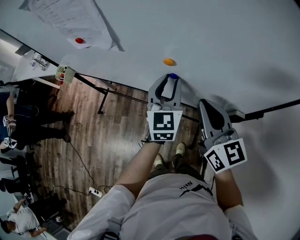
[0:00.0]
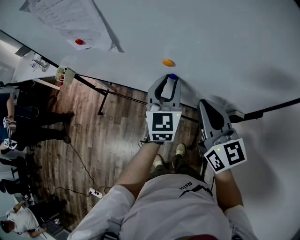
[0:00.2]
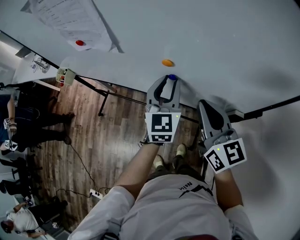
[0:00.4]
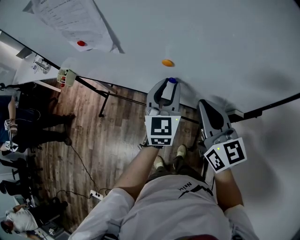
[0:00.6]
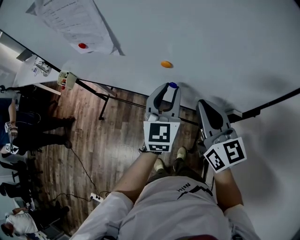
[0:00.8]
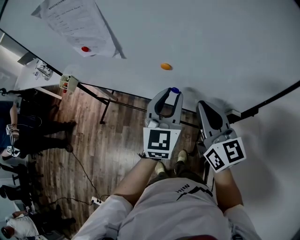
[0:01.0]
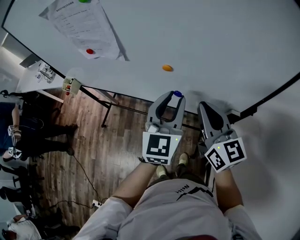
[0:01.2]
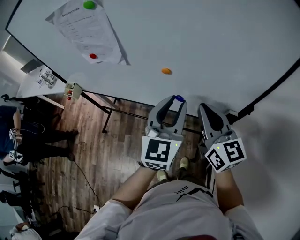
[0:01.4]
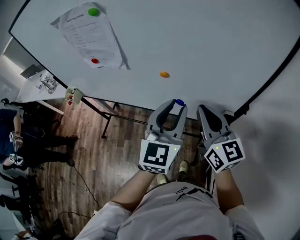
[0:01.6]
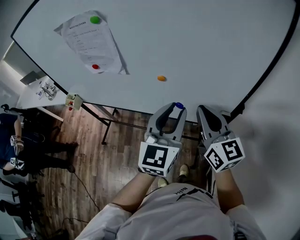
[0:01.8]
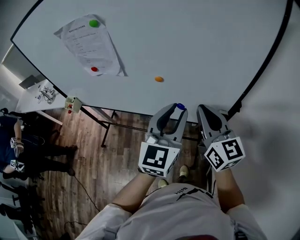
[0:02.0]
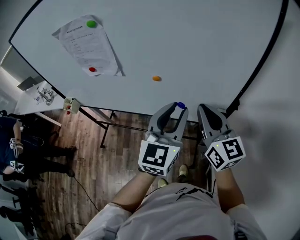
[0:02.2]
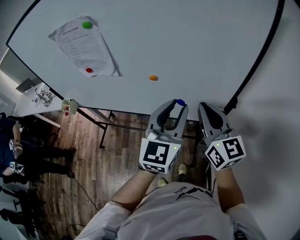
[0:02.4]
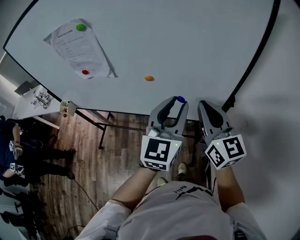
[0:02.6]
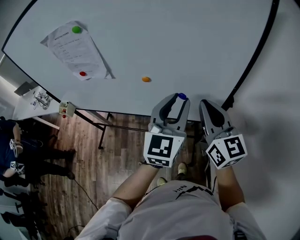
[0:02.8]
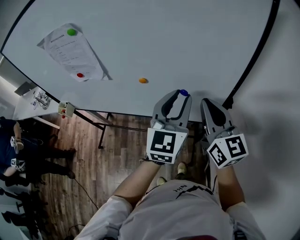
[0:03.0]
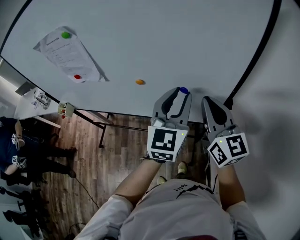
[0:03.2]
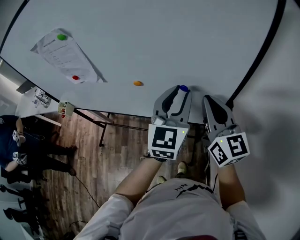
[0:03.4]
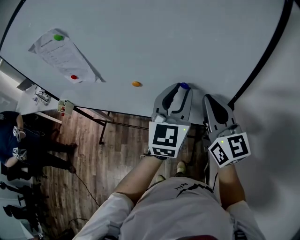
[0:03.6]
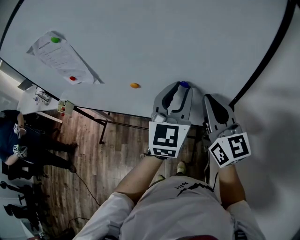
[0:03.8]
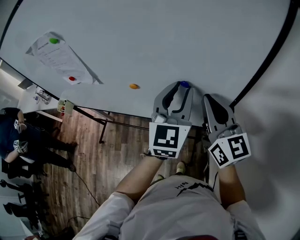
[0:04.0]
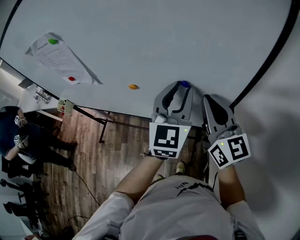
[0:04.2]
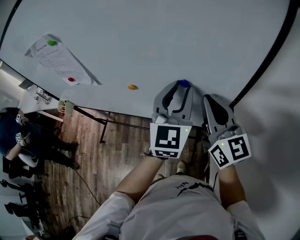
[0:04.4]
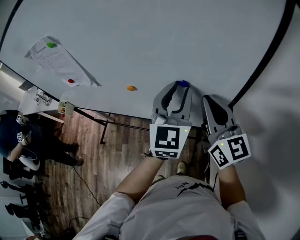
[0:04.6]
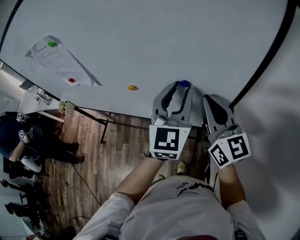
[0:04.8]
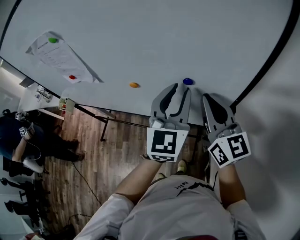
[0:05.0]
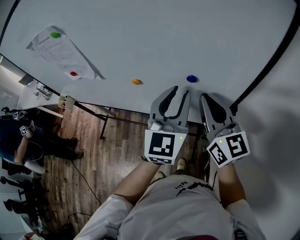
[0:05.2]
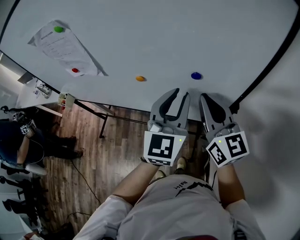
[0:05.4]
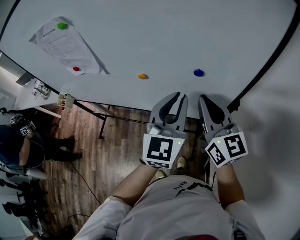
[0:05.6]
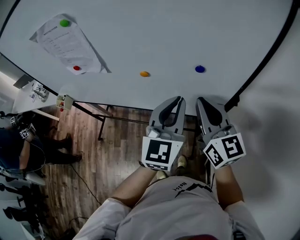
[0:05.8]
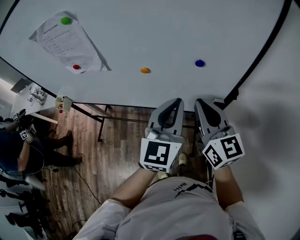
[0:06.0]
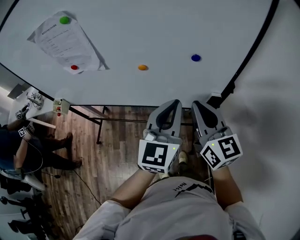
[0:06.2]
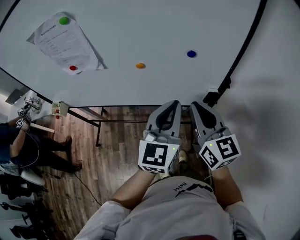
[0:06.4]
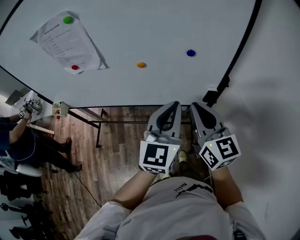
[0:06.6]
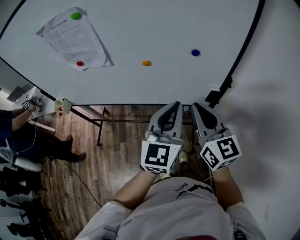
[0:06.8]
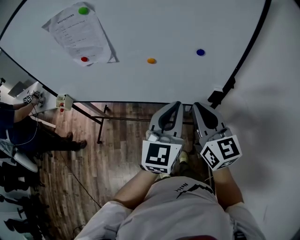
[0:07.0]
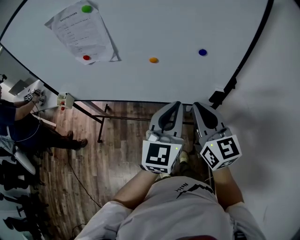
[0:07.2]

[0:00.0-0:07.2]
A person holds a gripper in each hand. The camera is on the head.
0:00.0 to 0:01.4: The right gripper shifts by about 5 cm. The left gripper moves backward and upward, approximately 15 cm.
0:01.4 to 0:02.8: The right gripper heads to the right and upward, covering roughly 10 cm, while the left gripper goes approximately 10 cm to the right.
0:02.8 to 0:04.4: Both grippers travel together forward and to the right, about 10 cm.
0:04.4 to 0:05.8: The left gripper goes about 10 cm backward and to the left, and closes its fingers; the right gripper heads to the left, covering approximately 5 cm.
0:05.8 to 0:07.2: The grippers both shift backward by roughly 10 cm.

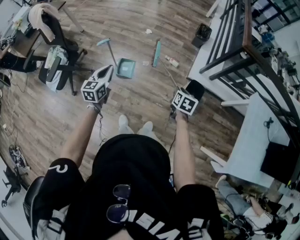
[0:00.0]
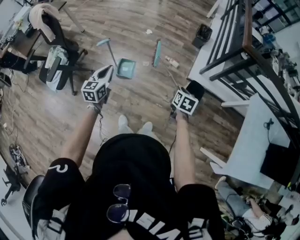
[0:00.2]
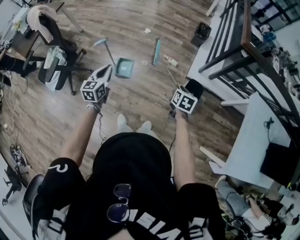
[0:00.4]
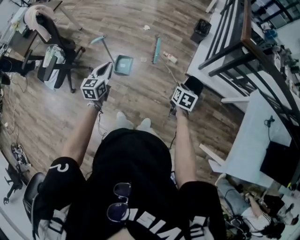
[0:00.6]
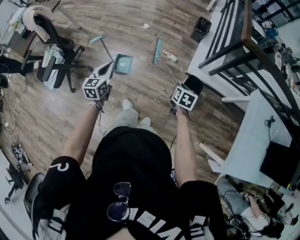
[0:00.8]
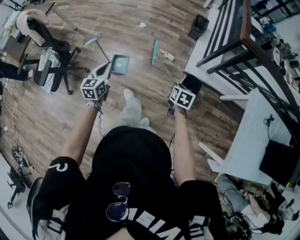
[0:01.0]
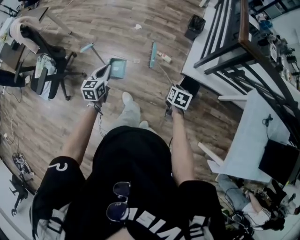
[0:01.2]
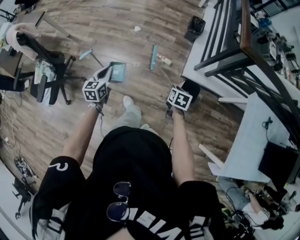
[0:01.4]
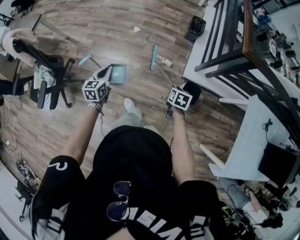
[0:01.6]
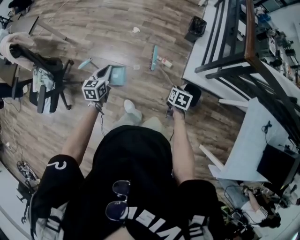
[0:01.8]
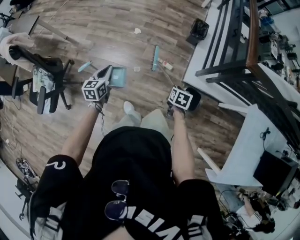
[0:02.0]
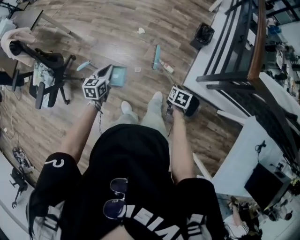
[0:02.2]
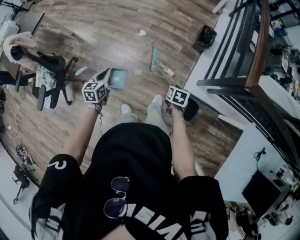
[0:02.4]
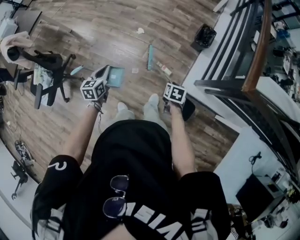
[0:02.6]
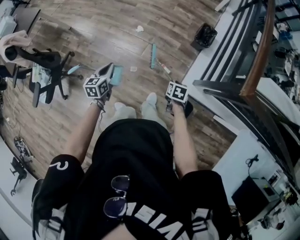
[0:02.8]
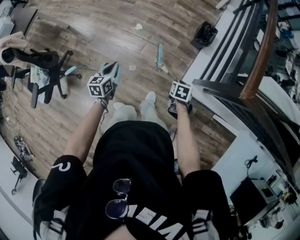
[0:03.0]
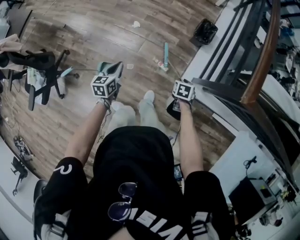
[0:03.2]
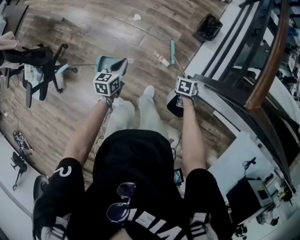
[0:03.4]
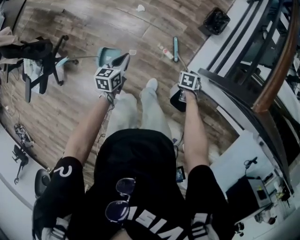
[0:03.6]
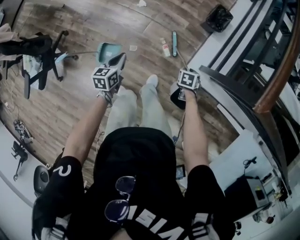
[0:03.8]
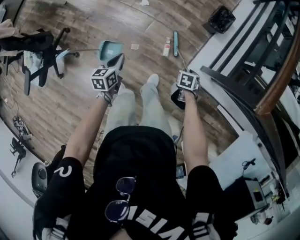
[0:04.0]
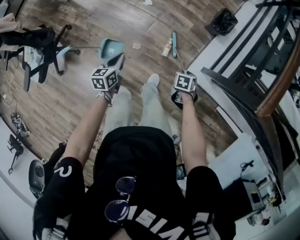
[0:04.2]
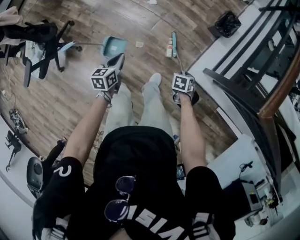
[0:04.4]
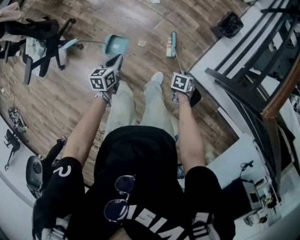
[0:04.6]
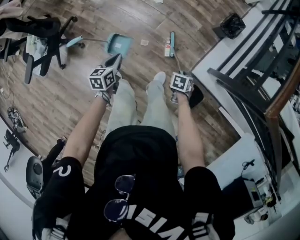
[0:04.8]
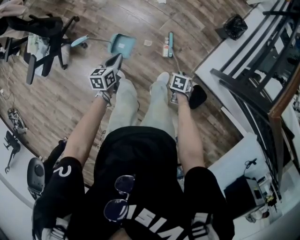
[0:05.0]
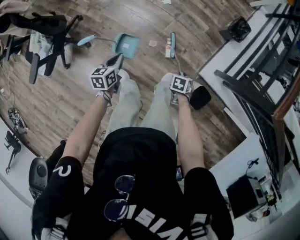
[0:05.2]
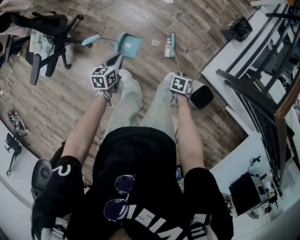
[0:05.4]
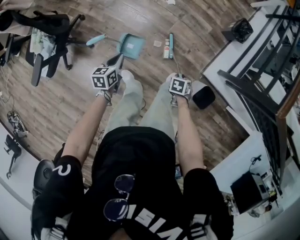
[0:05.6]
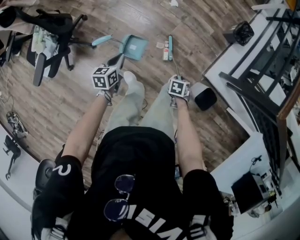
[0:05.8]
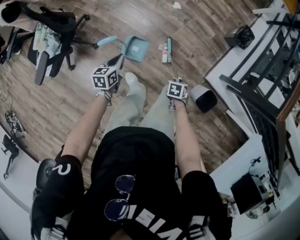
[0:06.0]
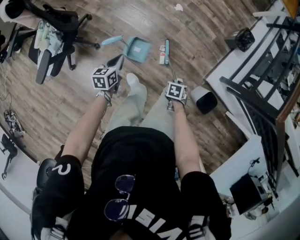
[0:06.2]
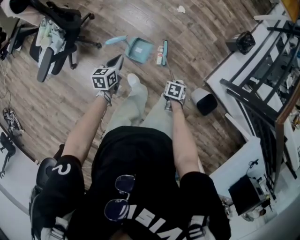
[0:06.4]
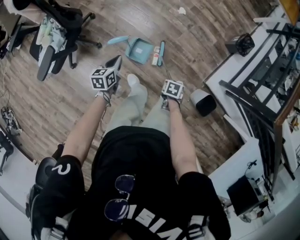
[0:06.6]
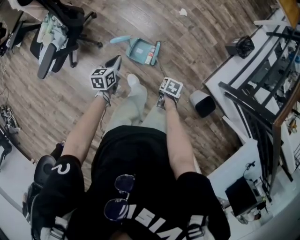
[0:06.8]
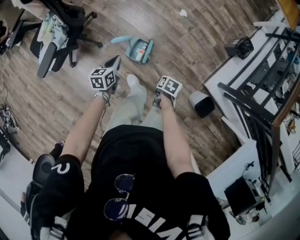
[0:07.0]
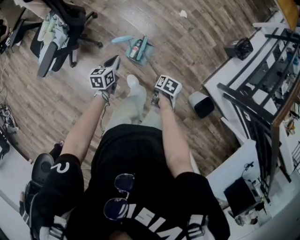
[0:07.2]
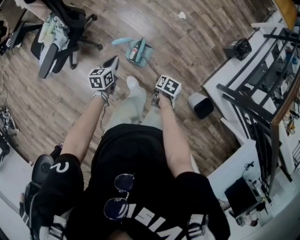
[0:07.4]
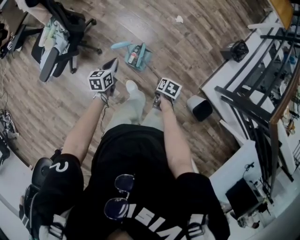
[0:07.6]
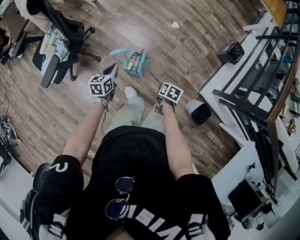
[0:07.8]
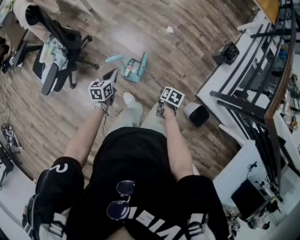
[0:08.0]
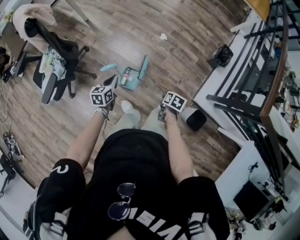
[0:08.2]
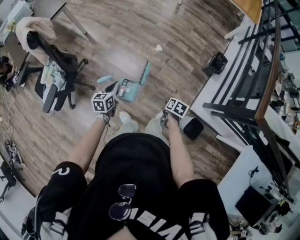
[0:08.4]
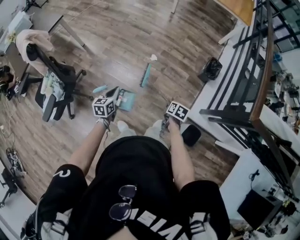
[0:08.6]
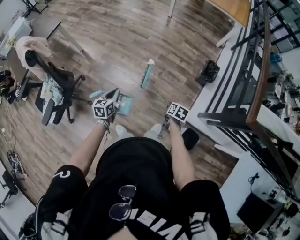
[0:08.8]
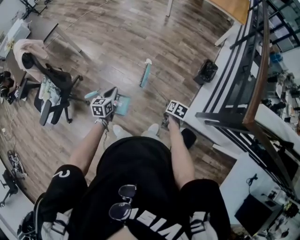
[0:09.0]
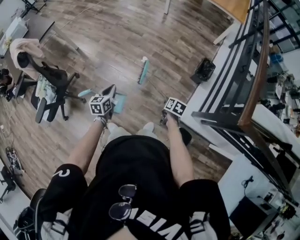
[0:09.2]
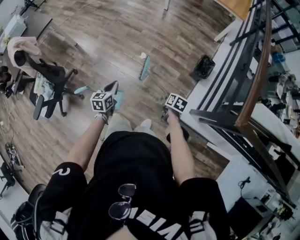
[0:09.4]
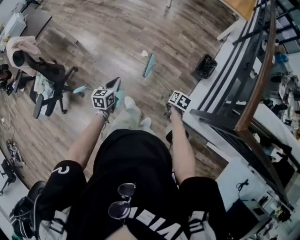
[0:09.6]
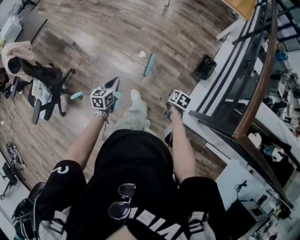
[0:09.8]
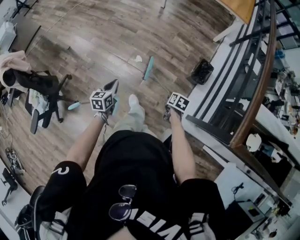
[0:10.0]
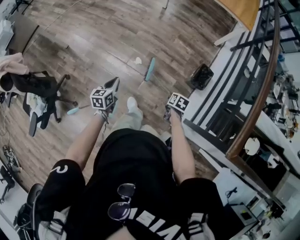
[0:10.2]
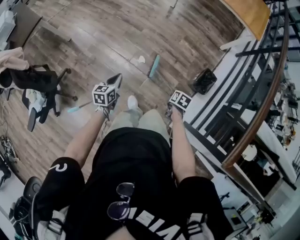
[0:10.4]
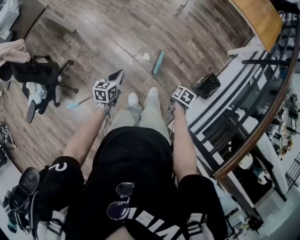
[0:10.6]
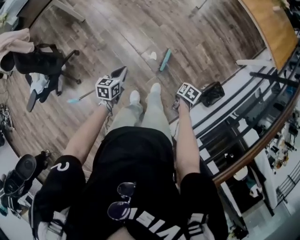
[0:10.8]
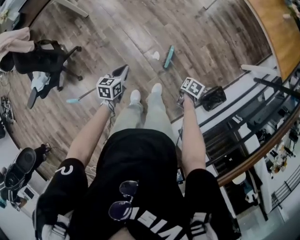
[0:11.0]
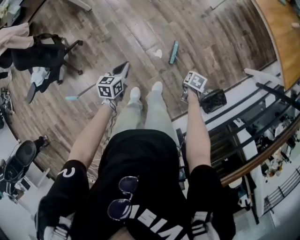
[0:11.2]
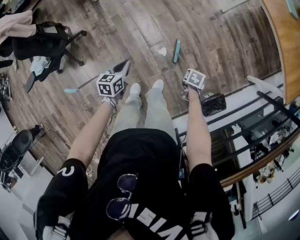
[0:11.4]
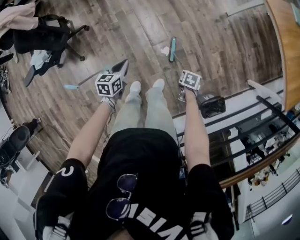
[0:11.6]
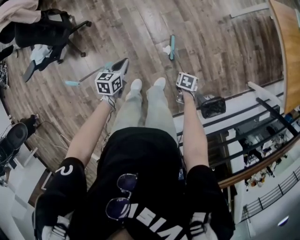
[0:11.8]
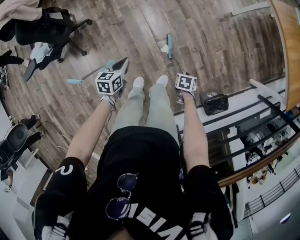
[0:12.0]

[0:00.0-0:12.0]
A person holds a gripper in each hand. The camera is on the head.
0:00.0 to 0:01.6: The two grippers go some 20 cm forward.
0:01.6 to 0:03.0: The left gripper moves forward and to the right, about 25 cm, while the right gripper moves forward, some 25 cm.
0:03.0 to 0:04.4: Both grippers move downward, about 10 cm. The right gripper rotates approximately 20 degrees.
0:04.4 to 0:06.0: The right gripper moves approximately 30 cm; the left gripper moves about 30 cm.
0:06.0 to 0:07.6: The right gripper ends up approximately 15 cm from where it was, and swivels approximately 30 degrees. The left gripper ends up roughly 10 cm from where it was.
0:07.6 to 0:09.0: Both grippers travel together to the right, upward and forward, approximately 35 cm.
0:09.0 to 0:10.4: Both grippers travel together forward, some 30 cm.
0:10.4 to 0:12.0: The left gripper changes place by roughly 15 cm, and changes its angle by some 30 degrees, while the right gripper changes place by approximately 30 cm, and rotates around the line of its fingers by roughly 50 degrees, counterclockwise from behind.

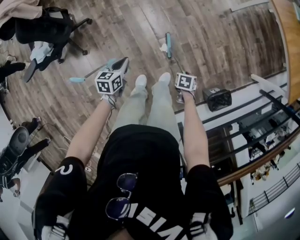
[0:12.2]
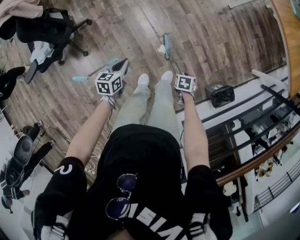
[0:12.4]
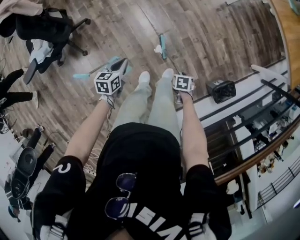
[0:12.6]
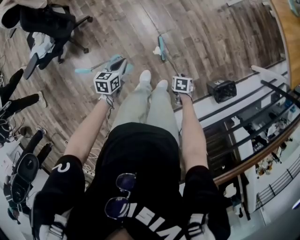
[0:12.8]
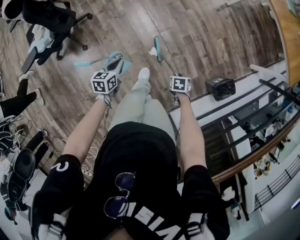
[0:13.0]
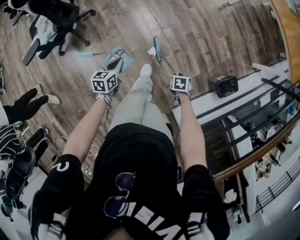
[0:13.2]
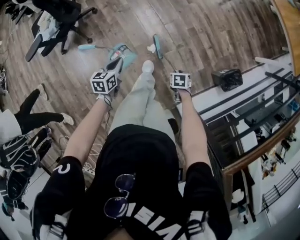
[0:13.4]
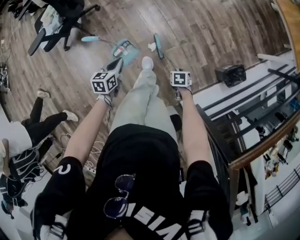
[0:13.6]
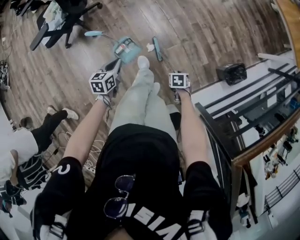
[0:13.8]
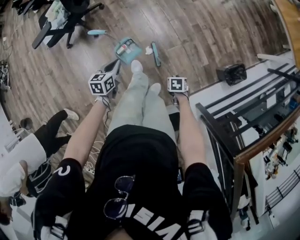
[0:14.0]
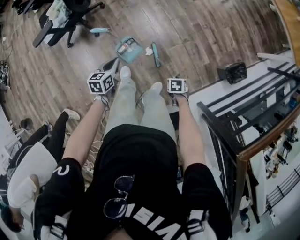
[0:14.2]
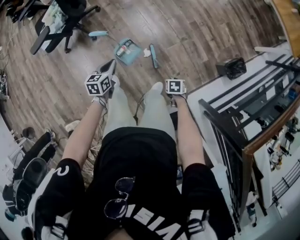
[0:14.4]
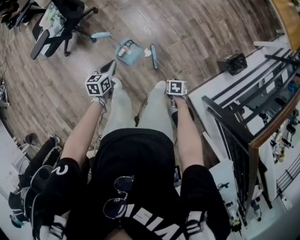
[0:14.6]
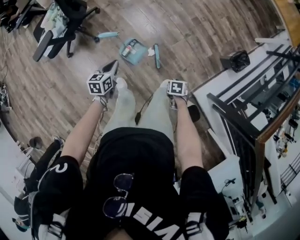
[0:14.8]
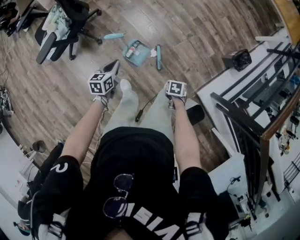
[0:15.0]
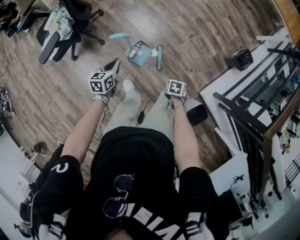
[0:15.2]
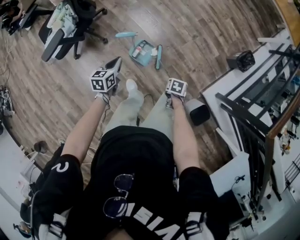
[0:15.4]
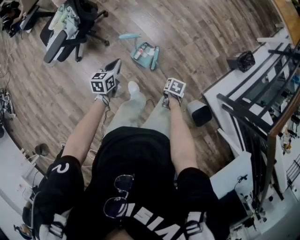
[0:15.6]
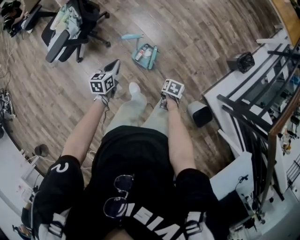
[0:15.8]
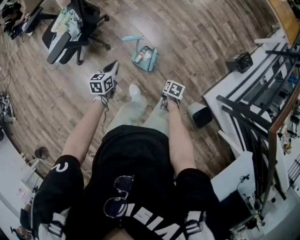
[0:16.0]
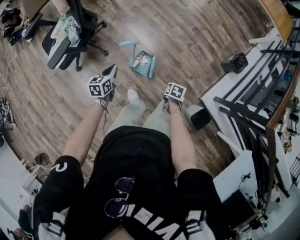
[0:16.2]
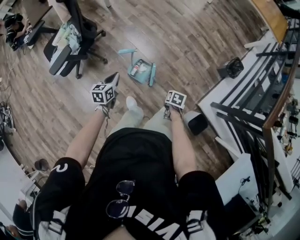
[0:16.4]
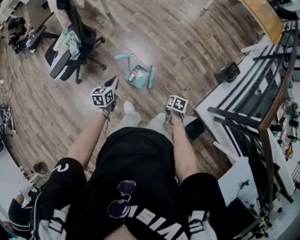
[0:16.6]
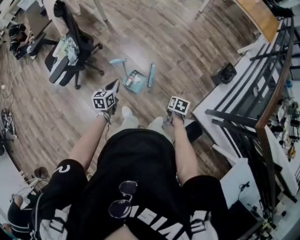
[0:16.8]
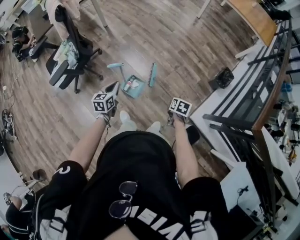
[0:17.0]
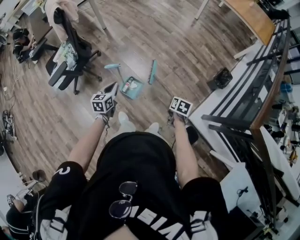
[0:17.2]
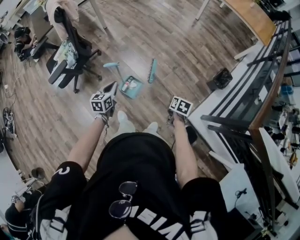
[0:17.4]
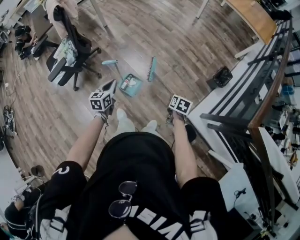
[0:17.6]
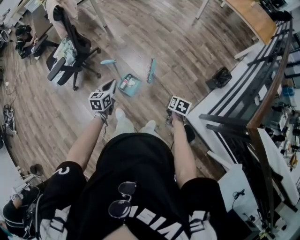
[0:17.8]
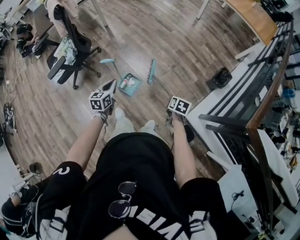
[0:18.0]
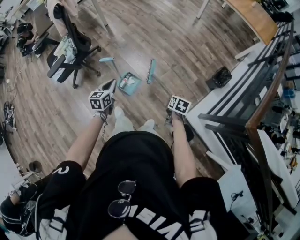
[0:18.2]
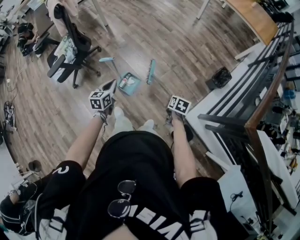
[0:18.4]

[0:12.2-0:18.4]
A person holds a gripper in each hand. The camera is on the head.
0:12.2 to 0:13.8: The left gripper ends up some 35 cm from where it was, while the right gripper ends up roughly 35 cm from where it was.
0:13.8 to 0:15.4: The left gripper shifts by roughly 25 cm. The right gripper moves approximately 25 cm, and rotates some 30 degrees.
0:15.4 to 0:16.8: The right gripper is displaced upward by some 15 cm. Meanwhile the left gripper shifts approximately 10 cm upward.
0:16.8 to 0:18.4: The grippers both shift to the right by some 15 cm.
